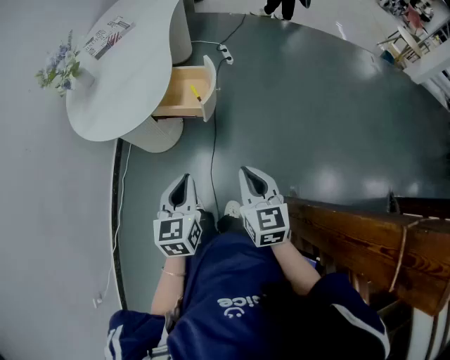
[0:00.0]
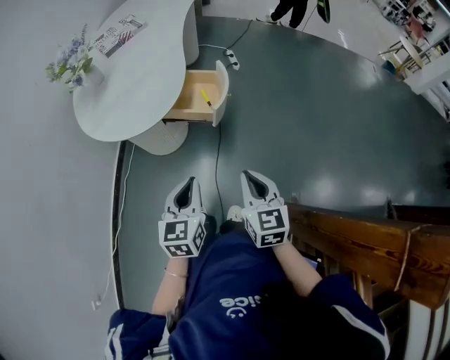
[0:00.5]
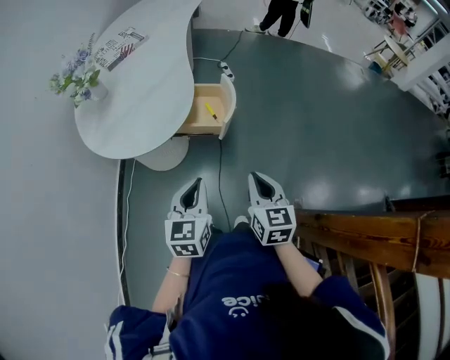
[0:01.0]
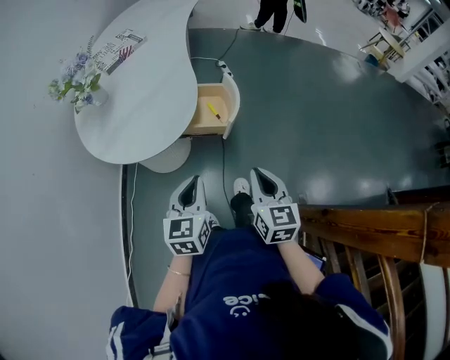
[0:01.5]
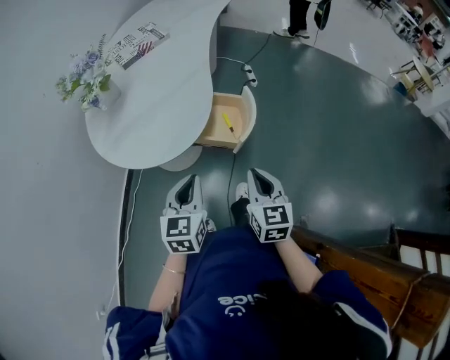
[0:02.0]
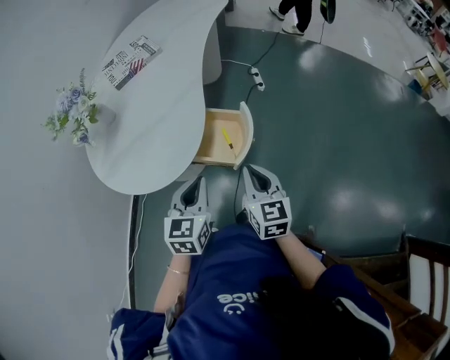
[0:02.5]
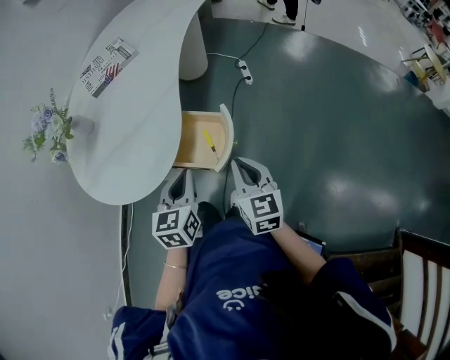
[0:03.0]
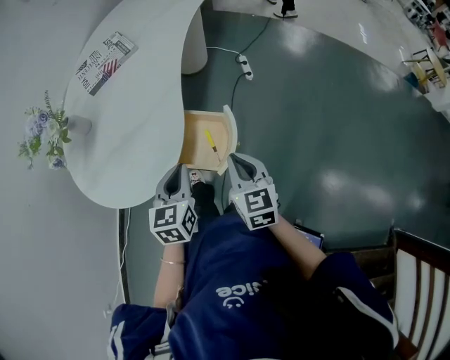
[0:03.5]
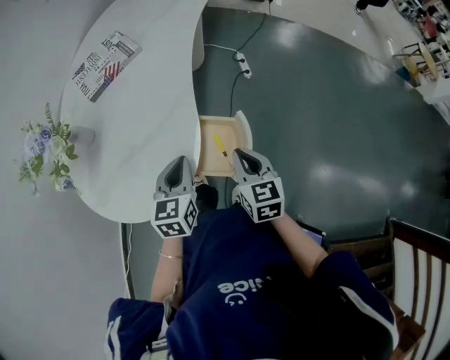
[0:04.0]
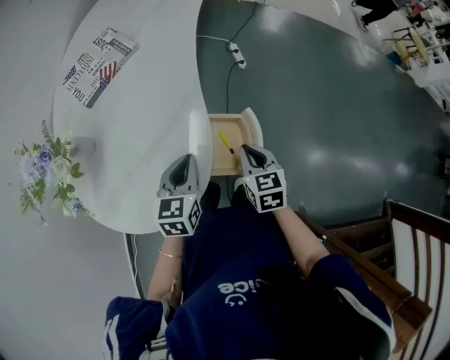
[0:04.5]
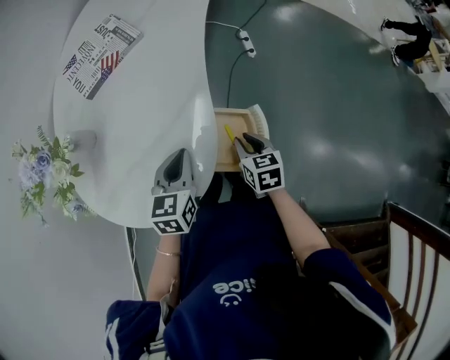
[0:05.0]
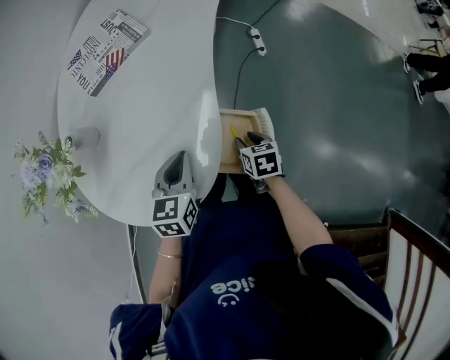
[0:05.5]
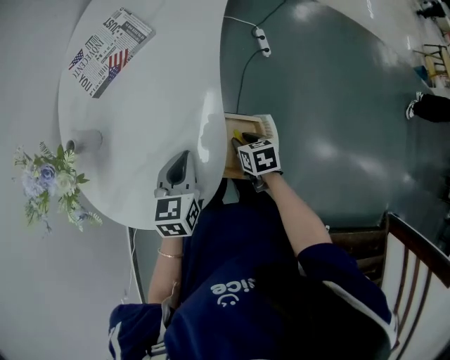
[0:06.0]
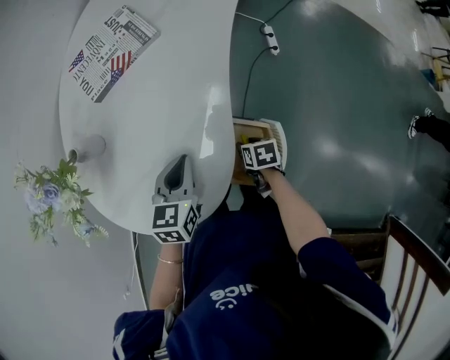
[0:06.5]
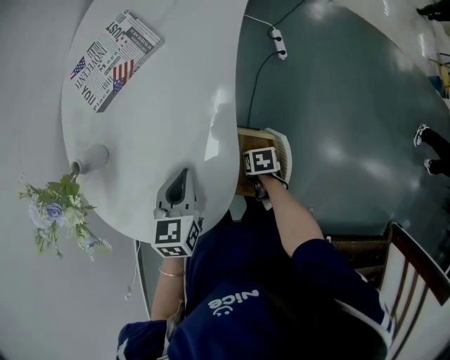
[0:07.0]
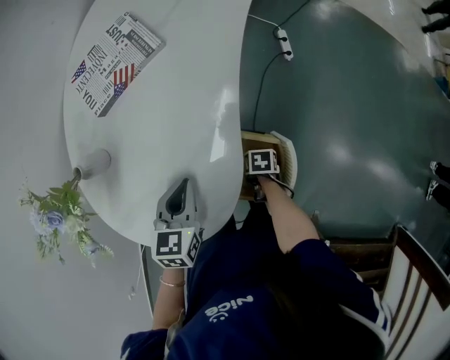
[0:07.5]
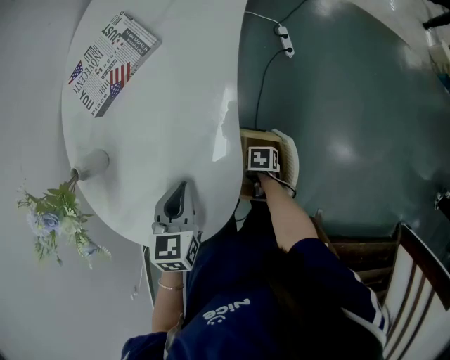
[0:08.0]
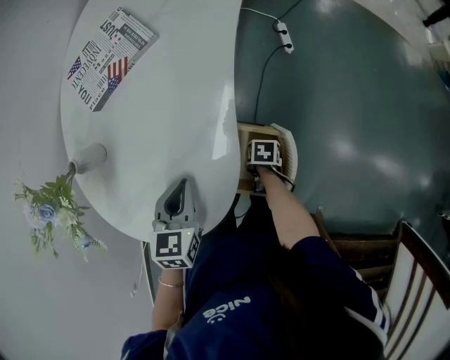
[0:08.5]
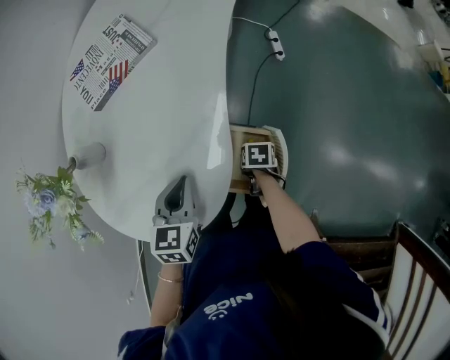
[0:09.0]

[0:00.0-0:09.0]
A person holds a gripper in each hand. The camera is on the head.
0:00.0 to 0:02.0: Both grippers travel together forward and to the left, approximately 15 cm.
0:02.0 to 0:04.5: Both grippers travel together forward, roughly 25 cm.
0:04.5 to 0:07.0: The right gripper is displaced downward by roughly 20 cm, points its fingers roughly 30 degrees further downward, and opens up; the left gripper changes place by approximately 10 cm.
0:07.0 to 0:09.0: The right gripper closes.

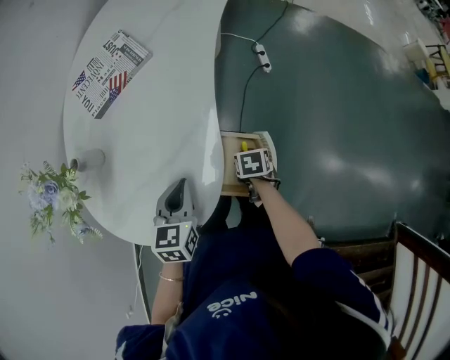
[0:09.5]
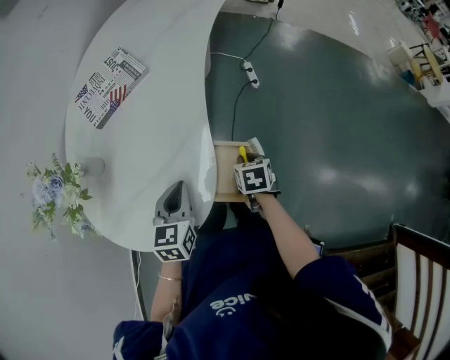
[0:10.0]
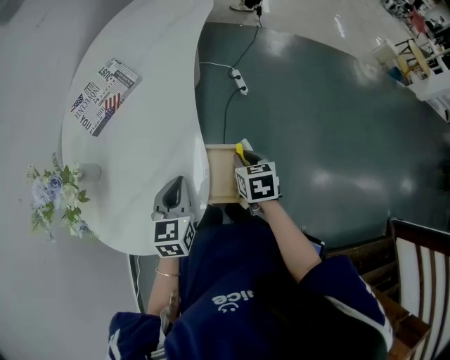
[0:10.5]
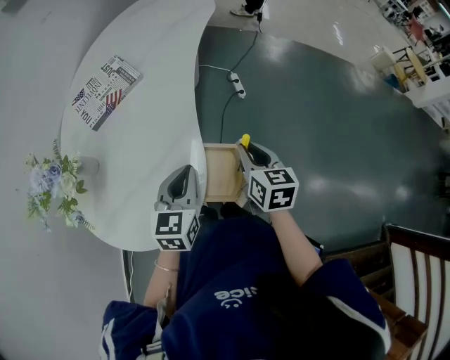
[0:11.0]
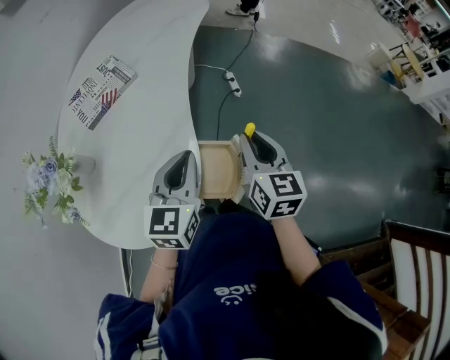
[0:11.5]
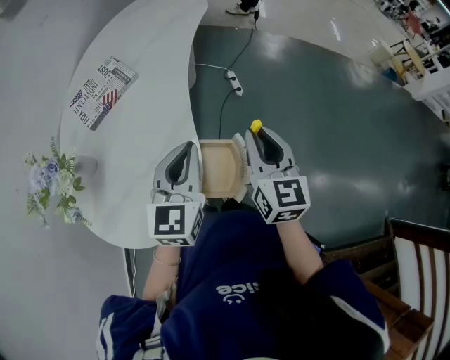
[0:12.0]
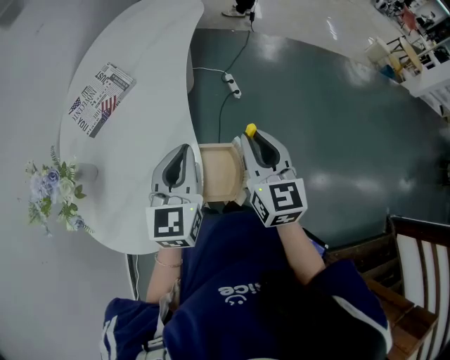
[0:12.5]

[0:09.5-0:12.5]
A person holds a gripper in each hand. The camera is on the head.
0:09.5 to 0:11.0: The right gripper shifts roughly 25 cm upward, and angles its fingers upward, by roughly 40 degrees; the left gripper goes approximately 5 cm upward.
0:11.0 to 0:12.5: The grippers both shift upward by roughly 10 cm. The right gripper turns by roughly 20 degrees.

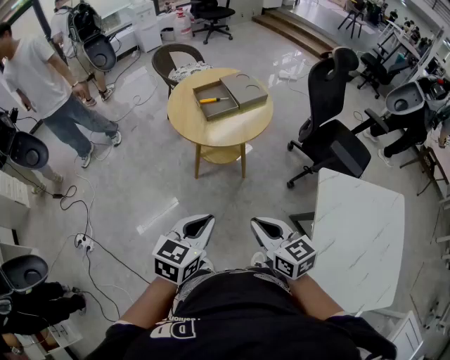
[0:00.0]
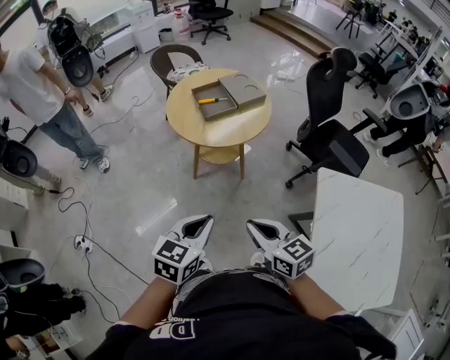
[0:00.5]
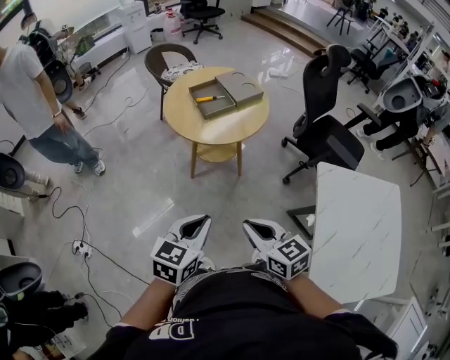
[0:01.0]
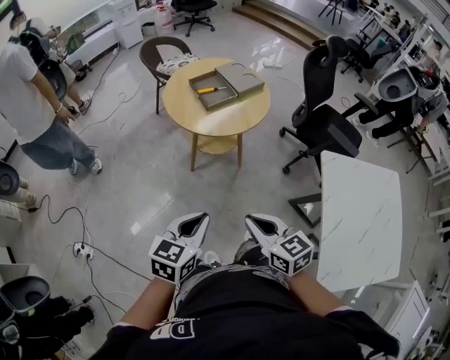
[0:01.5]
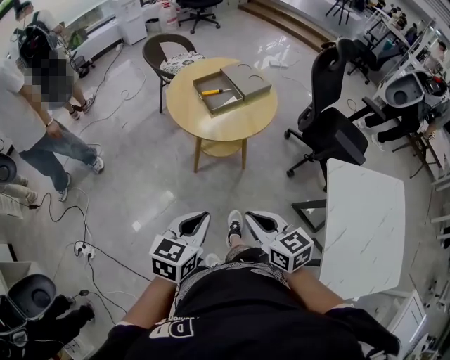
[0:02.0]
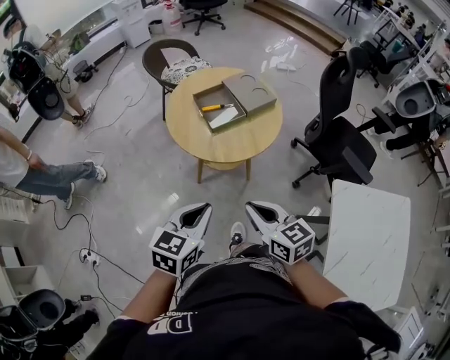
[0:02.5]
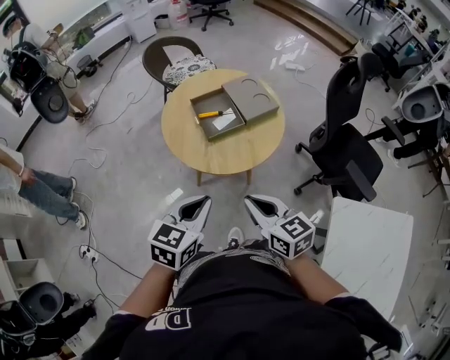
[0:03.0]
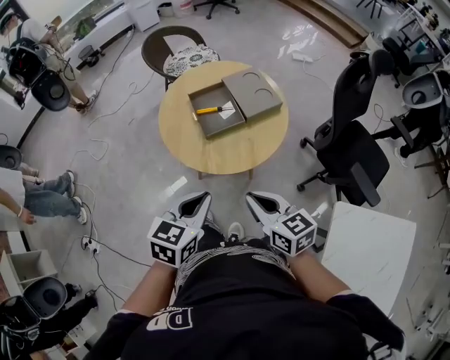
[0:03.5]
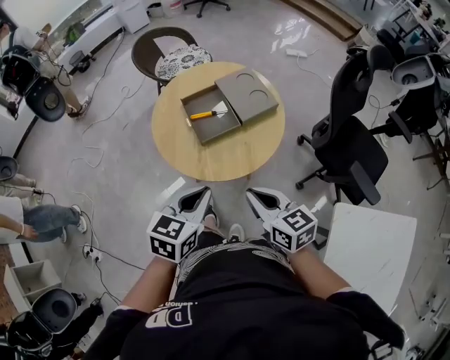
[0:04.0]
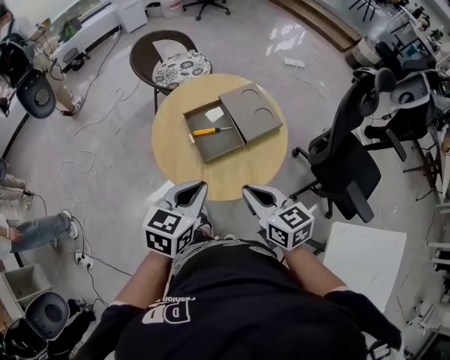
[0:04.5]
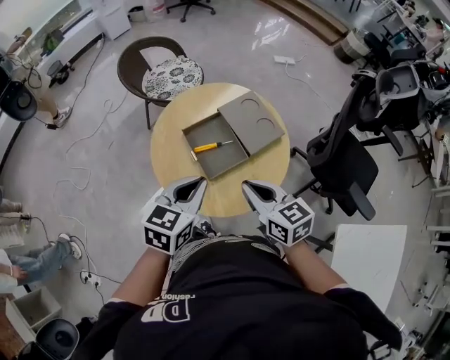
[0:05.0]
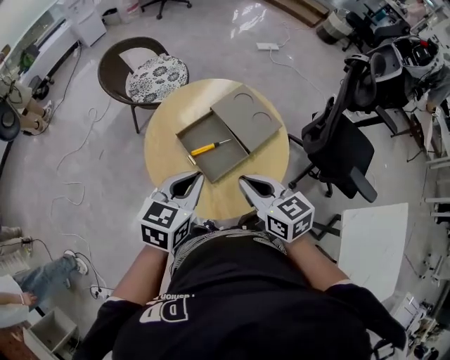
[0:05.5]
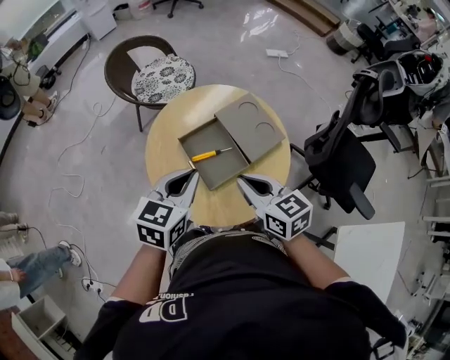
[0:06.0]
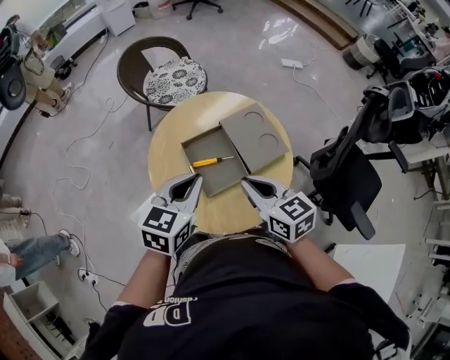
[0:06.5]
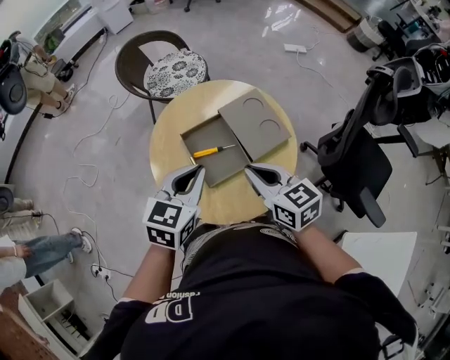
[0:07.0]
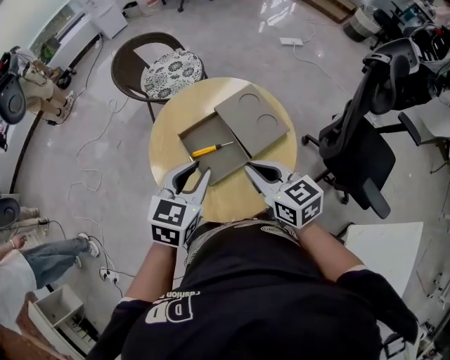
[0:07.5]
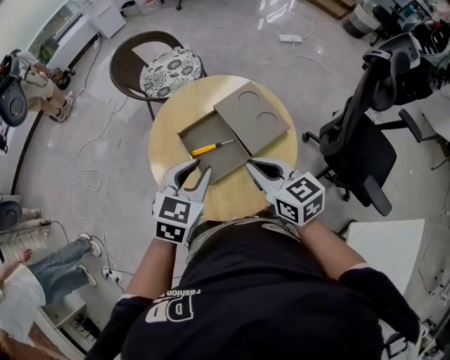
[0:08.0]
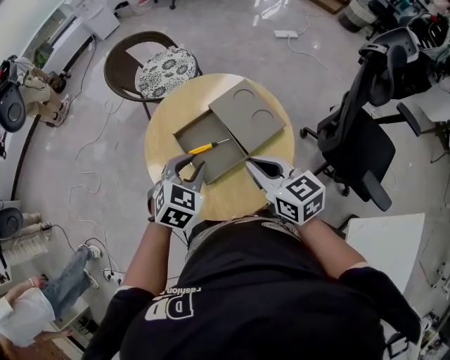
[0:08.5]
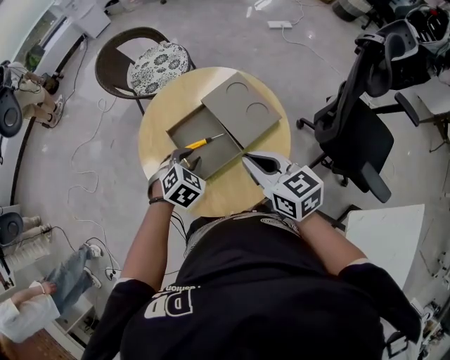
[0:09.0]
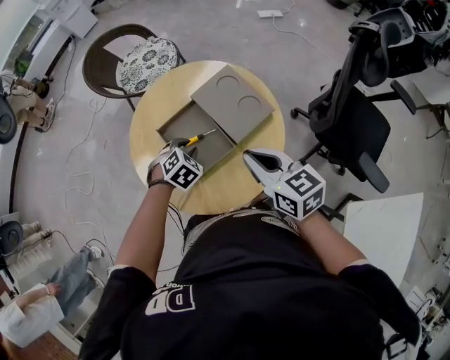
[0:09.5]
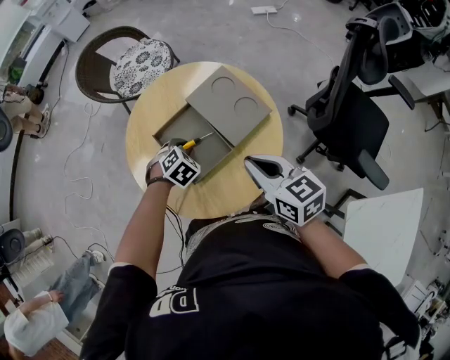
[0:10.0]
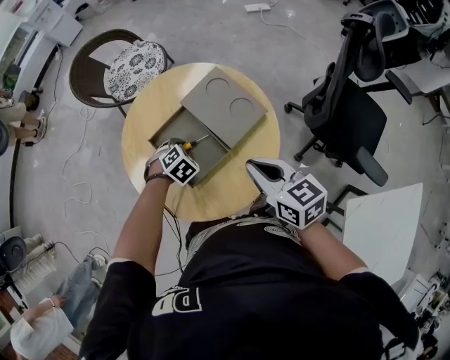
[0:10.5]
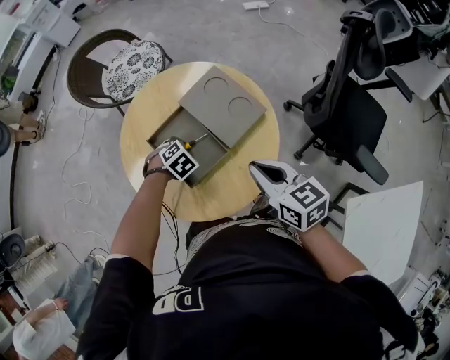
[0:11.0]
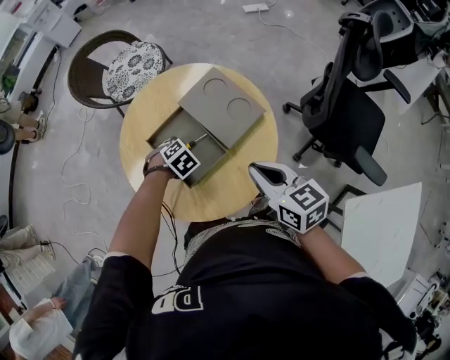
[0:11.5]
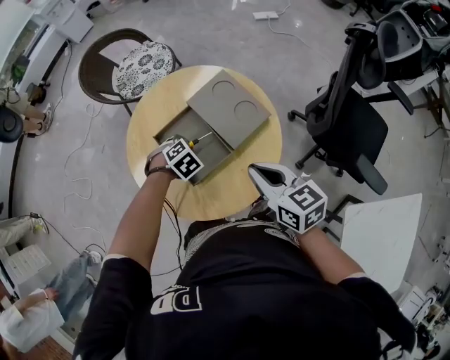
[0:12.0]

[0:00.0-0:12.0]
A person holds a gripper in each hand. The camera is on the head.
0:00.0 to 0:02.0: The two grippers go approximately 10 cm to the left.
0:02.0 to 0:04.0: The two grippers go about 30 cm forward.
0:04.0 to 0:06.0: The grippers both shift forward by about 25 cm.
0:06.0 to 0:08.0: The two grippers go some 5 cm to the right. The left gripper opens its fingers.
0:08.0 to 0:10.0: The right gripper changes place by roughly 5 cm. The left gripper heads downward, covering approximately 25 cm, and points its fingers roughly 30 degrees further downward.
0:10.0 to 0:12.0: The grippers make only small movements.

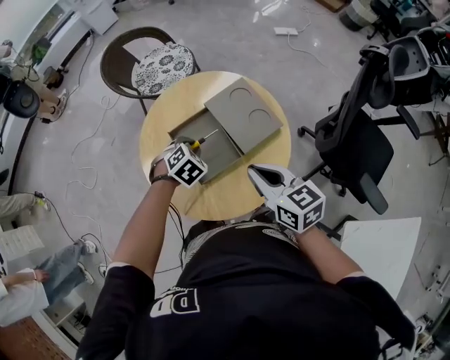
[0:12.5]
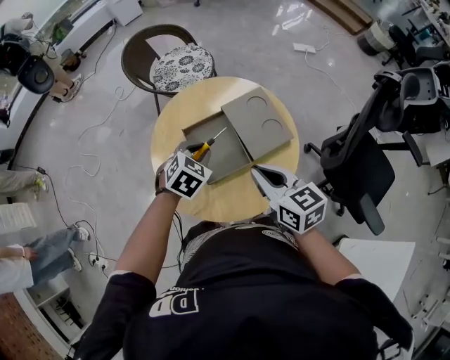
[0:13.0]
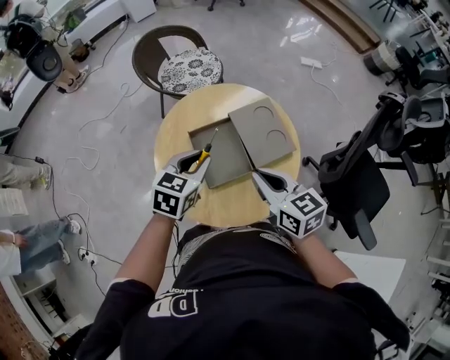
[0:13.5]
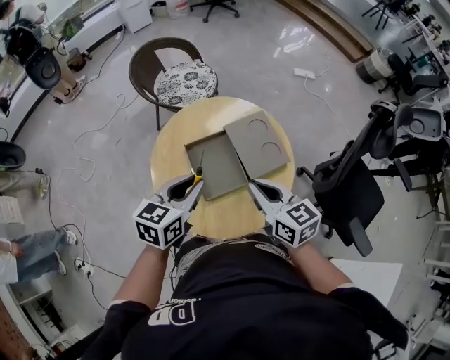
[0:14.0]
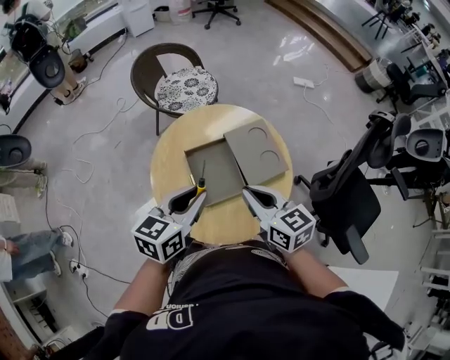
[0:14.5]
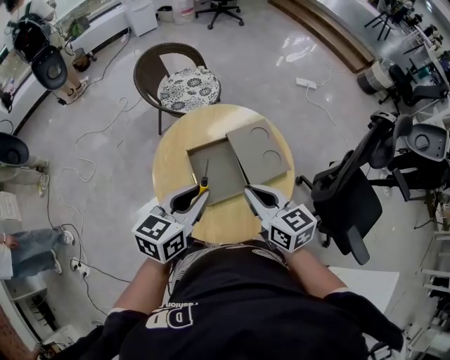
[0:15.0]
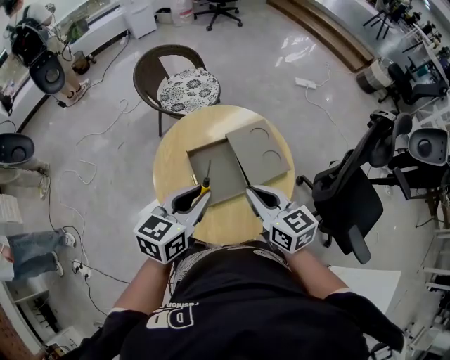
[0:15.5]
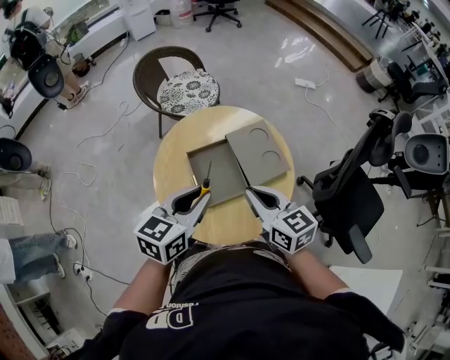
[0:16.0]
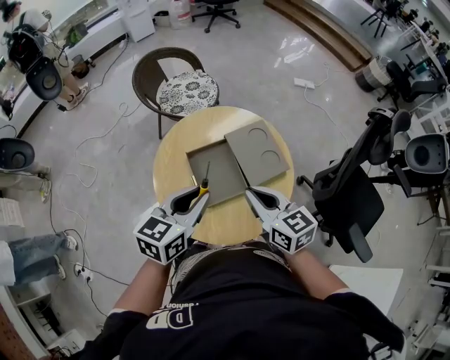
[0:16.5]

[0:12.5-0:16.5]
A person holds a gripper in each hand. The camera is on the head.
0:12.5 to 0:14.5: The left gripper goes roughly 20 cm upward and backward, and points its fingers approximately 40 degrees further upward; the right gripper changes place by some 5 cm.
0:14.5 to 0:16.5: The grippers stay close to where they were, moving slightly.
